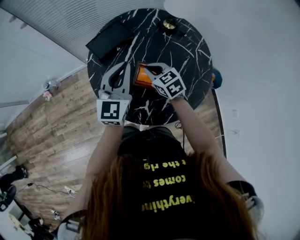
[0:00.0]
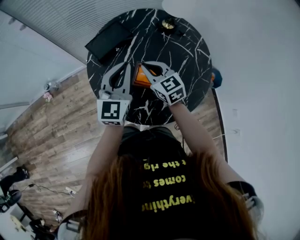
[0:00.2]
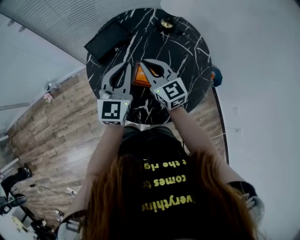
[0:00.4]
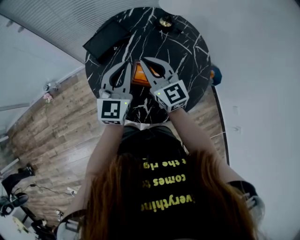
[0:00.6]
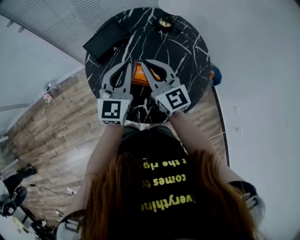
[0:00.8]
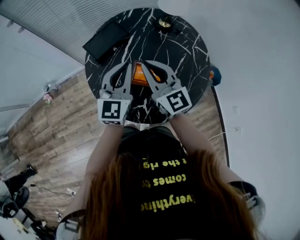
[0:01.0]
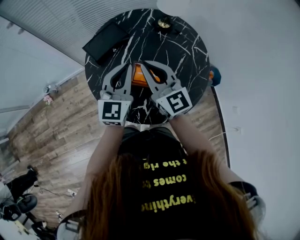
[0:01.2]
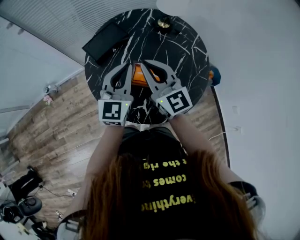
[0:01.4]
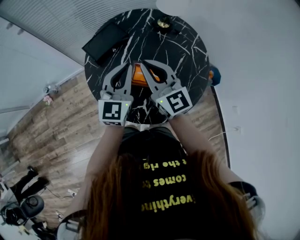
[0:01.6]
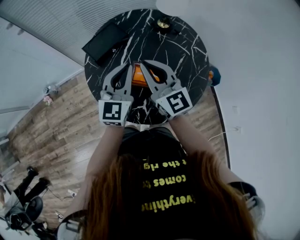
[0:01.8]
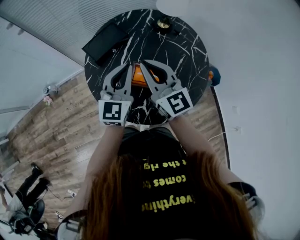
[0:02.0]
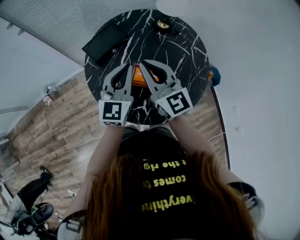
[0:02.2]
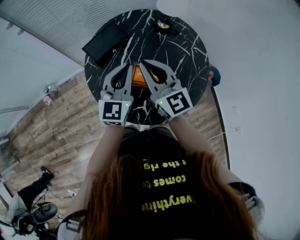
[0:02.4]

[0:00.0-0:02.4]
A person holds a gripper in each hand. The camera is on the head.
0.0 to 1.2 s: The right gripper moves upward, about 15 cm, and tilts its fingers about 40 degrees upward.
1.2 to 2.4 s: The two grippers keep their place.

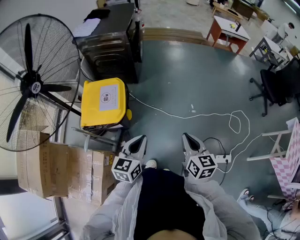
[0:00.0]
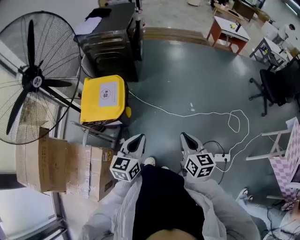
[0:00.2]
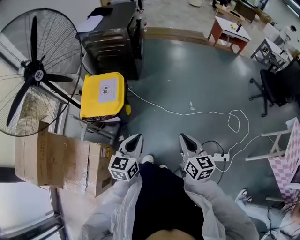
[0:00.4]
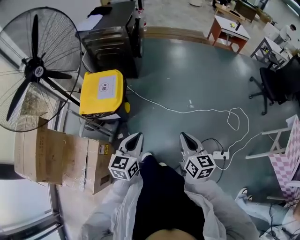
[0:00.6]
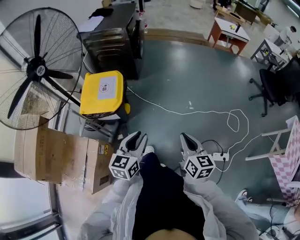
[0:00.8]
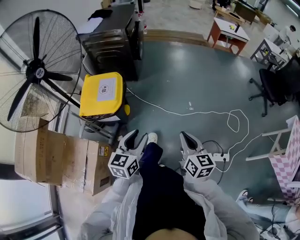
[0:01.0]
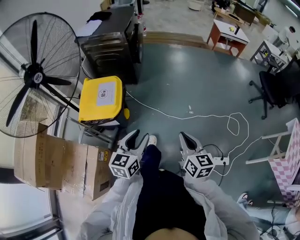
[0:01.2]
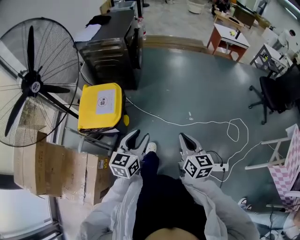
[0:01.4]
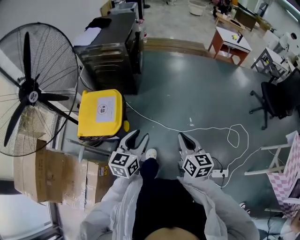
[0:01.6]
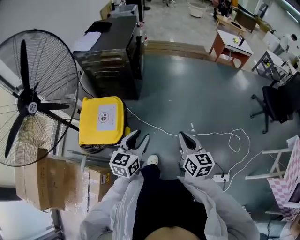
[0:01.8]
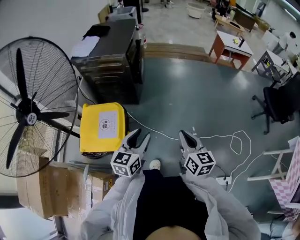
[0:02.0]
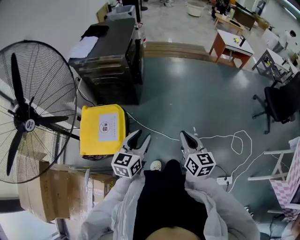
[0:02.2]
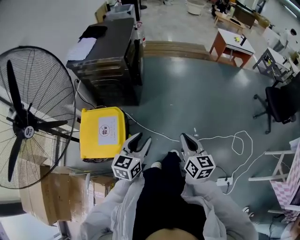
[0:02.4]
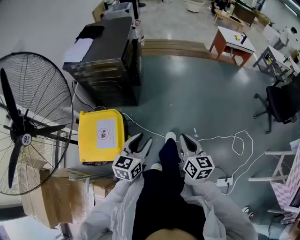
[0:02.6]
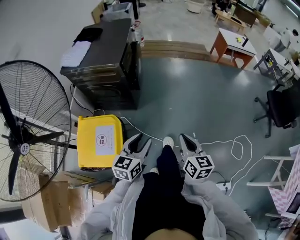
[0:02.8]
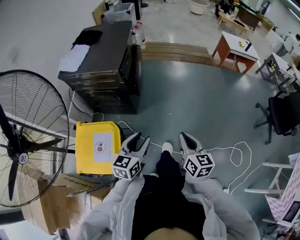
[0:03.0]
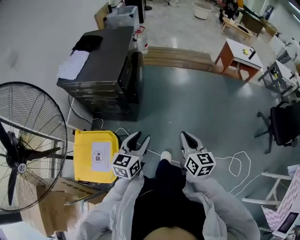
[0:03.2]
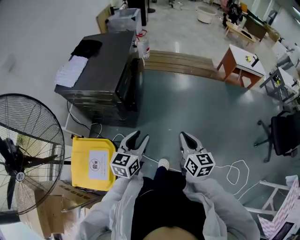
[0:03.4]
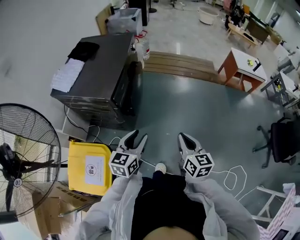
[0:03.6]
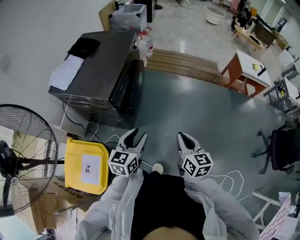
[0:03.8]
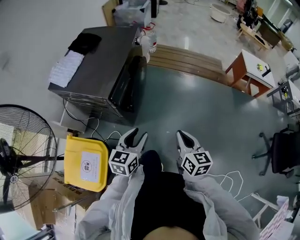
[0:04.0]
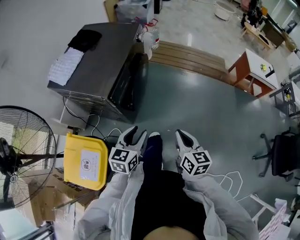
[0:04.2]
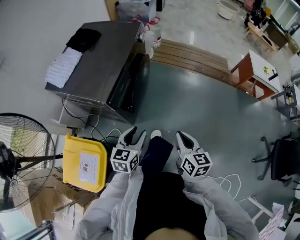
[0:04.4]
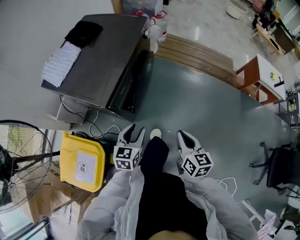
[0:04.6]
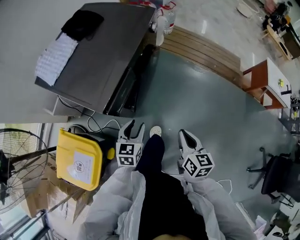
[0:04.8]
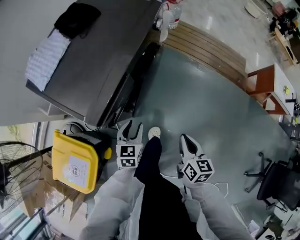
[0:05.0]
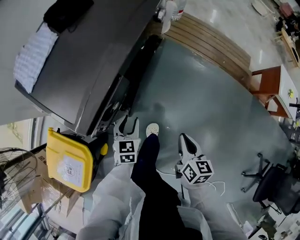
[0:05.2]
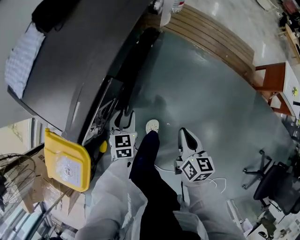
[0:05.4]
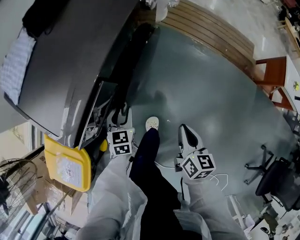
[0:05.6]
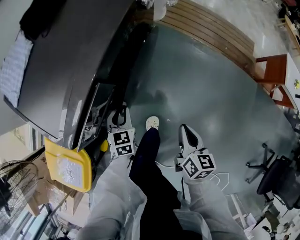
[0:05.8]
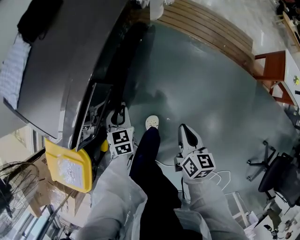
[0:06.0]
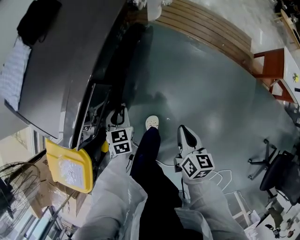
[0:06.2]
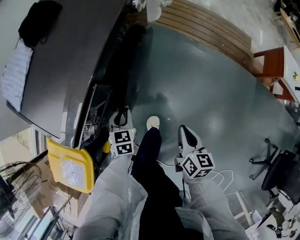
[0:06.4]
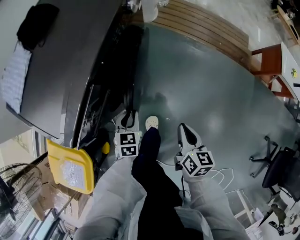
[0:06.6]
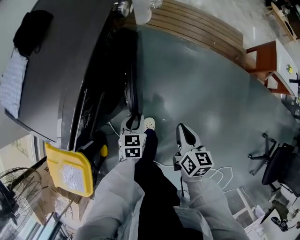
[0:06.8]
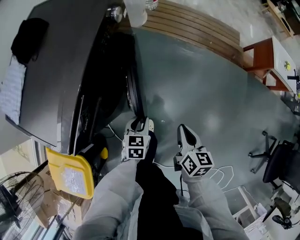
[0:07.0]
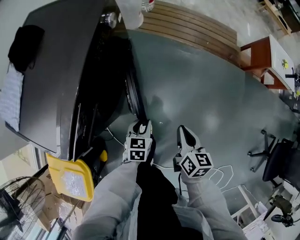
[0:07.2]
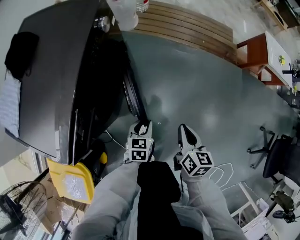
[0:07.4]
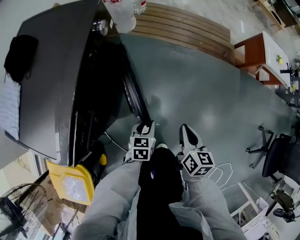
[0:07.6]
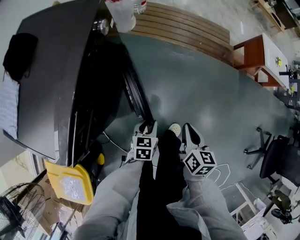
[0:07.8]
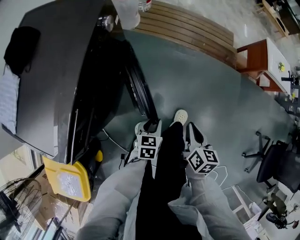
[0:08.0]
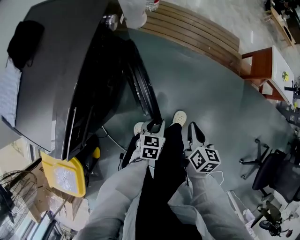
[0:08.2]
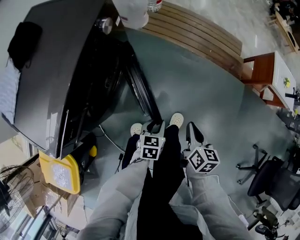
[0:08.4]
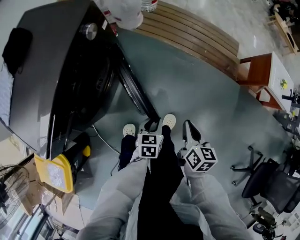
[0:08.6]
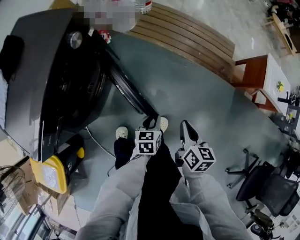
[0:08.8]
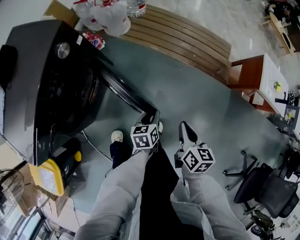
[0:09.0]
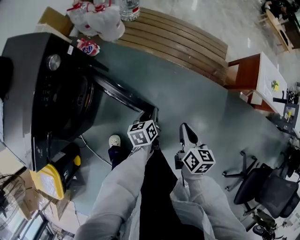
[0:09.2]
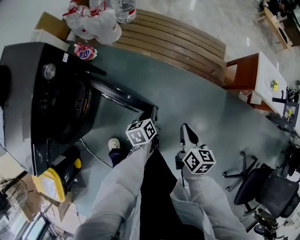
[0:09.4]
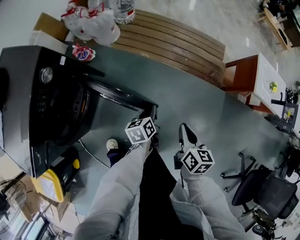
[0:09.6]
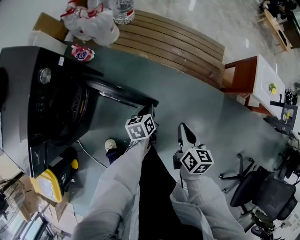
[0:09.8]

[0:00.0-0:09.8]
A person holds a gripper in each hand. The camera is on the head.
0.0 to 1.4 s: The right gripper moves roughly 10 cm backward and comes back, while the left gripper reaches about 10 cm backward, then returns, and opens.
1.4 to 2.8 s: Both grippers travel together forward, approximately 30 cm.
2.8 to 4.2 s: The two grippers go roughly 35 cm forward.
4.2 to 5.6 s: The right gripper shifts about 35 cm forward and downward, while the left gripper goes some 40 cm downward and forward, and swivels about 30 degrees.
5.6 to 7.0 s: The right gripper goes approximately 5 cm to the right. Meanwhile the left gripper heads to the right, covering about 15 cm.
7.0 to 8.4 s: The grippers both shift to the right and forward by about 15 cm.
8.4 to 9.8 s: The left gripper travels forward and to the right by roughly 30 cm, turns by about 30 degrees, and closes up, while the right gripper travels to the right and forward by roughly 25 cm.

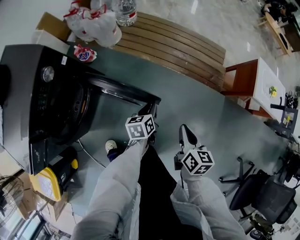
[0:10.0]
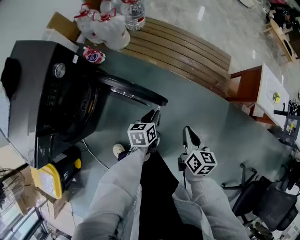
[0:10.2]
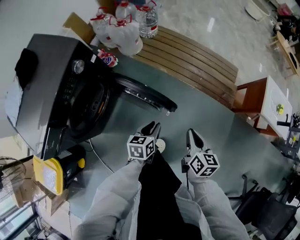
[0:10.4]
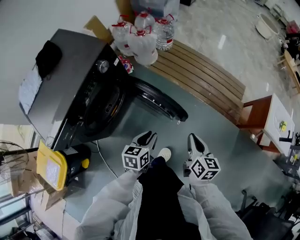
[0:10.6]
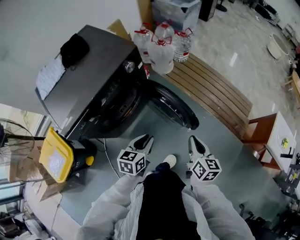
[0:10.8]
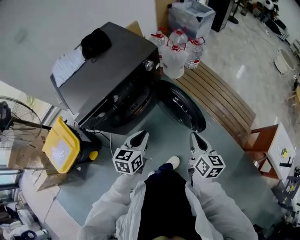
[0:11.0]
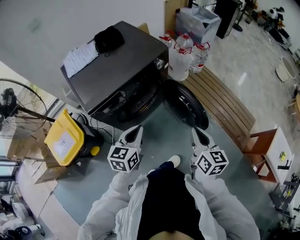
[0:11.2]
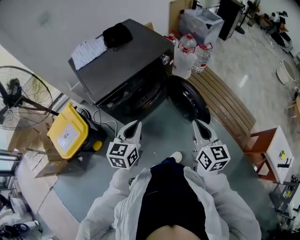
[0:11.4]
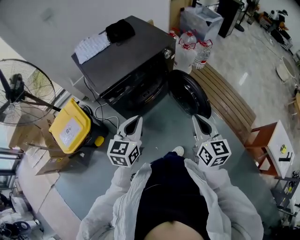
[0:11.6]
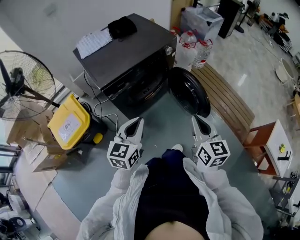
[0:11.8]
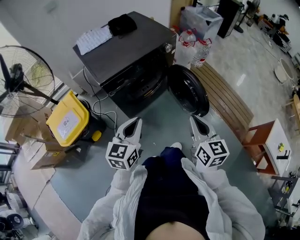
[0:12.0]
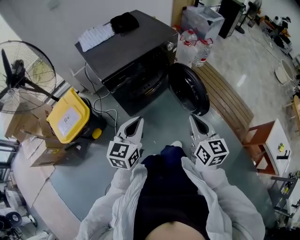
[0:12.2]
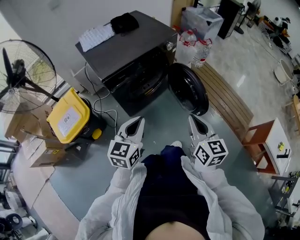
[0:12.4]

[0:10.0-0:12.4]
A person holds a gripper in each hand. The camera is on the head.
10.0 to 11.2 s: The right gripper changes place by roughly 35 cm, and turns by approximately 40 degrees; the left gripper shifts by some 50 cm, and swivels roughly 40 degrees.
11.2 to 12.4 s: The right gripper goes about 15 cm backward and to the left. The left gripper travels backward by approximately 15 cm.

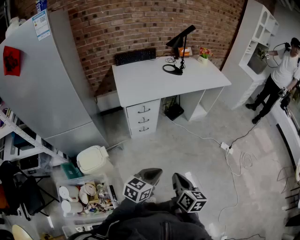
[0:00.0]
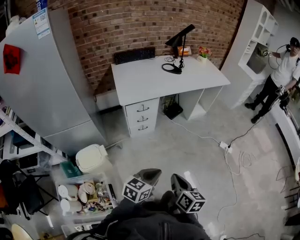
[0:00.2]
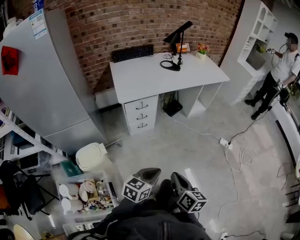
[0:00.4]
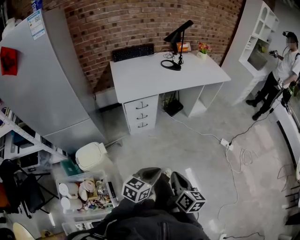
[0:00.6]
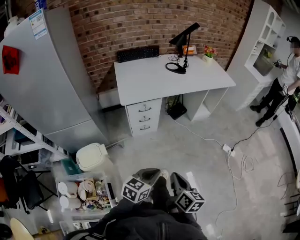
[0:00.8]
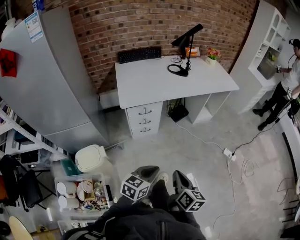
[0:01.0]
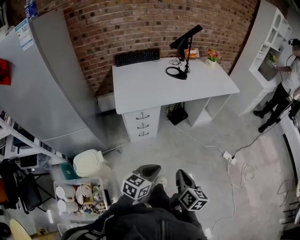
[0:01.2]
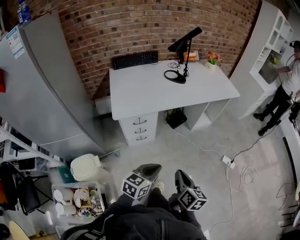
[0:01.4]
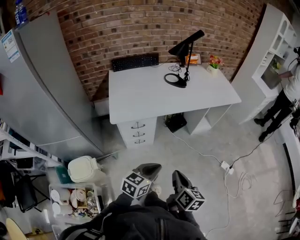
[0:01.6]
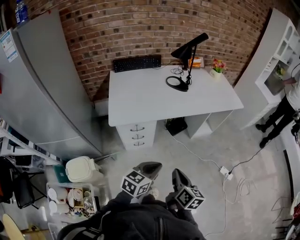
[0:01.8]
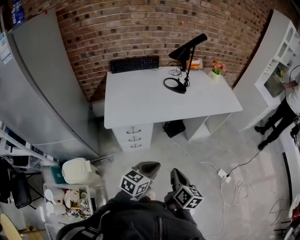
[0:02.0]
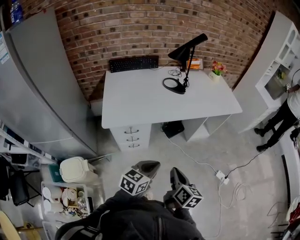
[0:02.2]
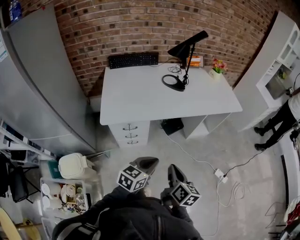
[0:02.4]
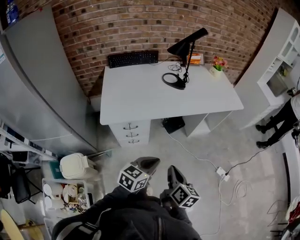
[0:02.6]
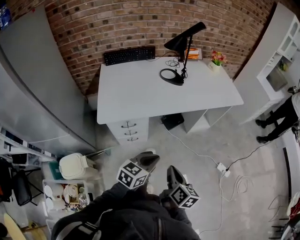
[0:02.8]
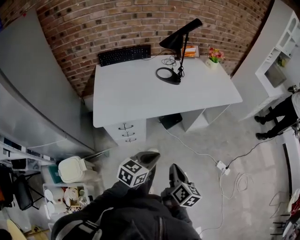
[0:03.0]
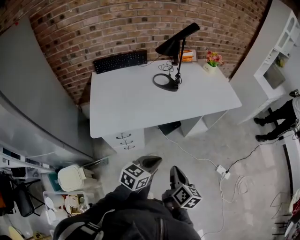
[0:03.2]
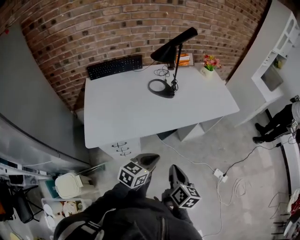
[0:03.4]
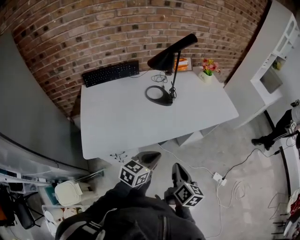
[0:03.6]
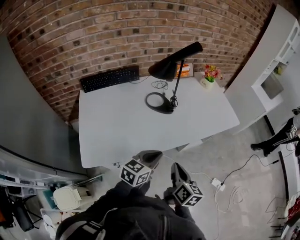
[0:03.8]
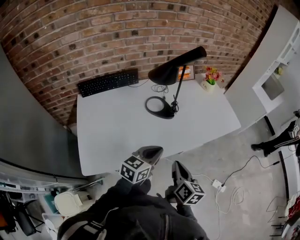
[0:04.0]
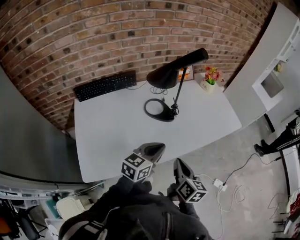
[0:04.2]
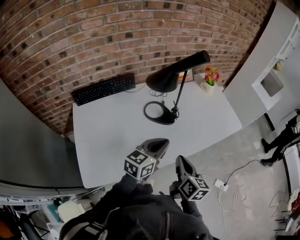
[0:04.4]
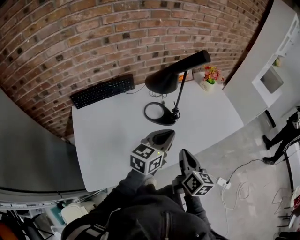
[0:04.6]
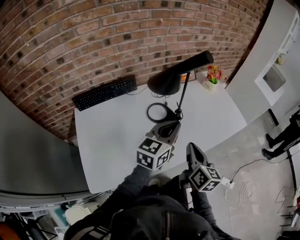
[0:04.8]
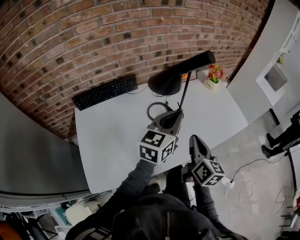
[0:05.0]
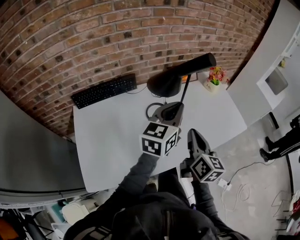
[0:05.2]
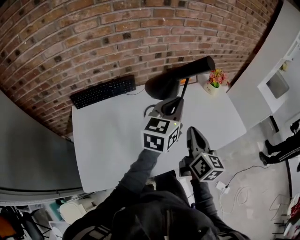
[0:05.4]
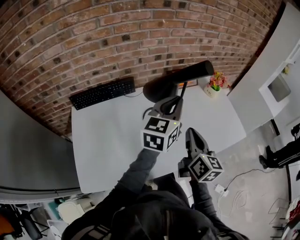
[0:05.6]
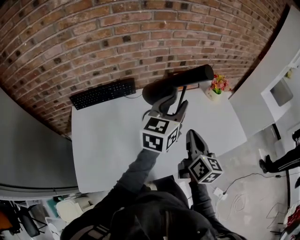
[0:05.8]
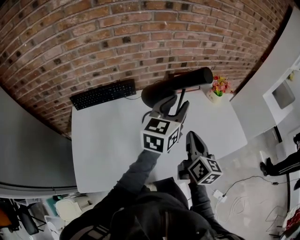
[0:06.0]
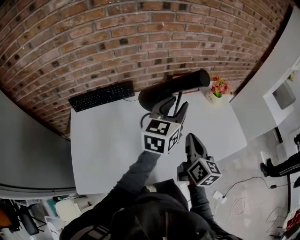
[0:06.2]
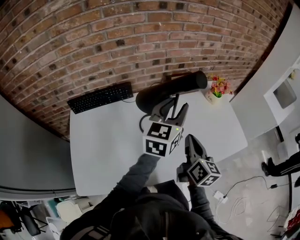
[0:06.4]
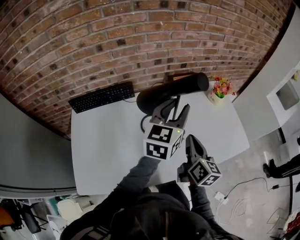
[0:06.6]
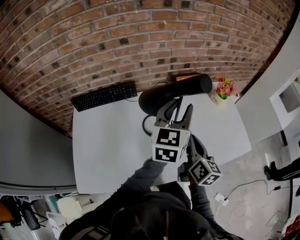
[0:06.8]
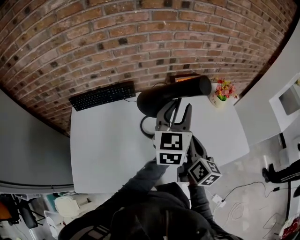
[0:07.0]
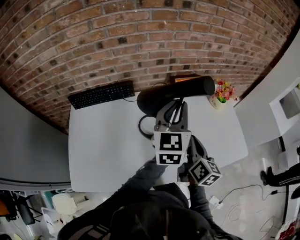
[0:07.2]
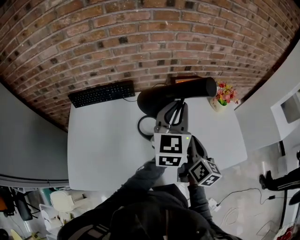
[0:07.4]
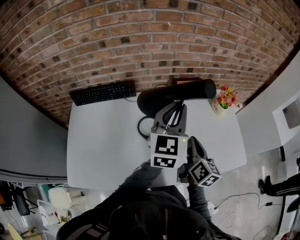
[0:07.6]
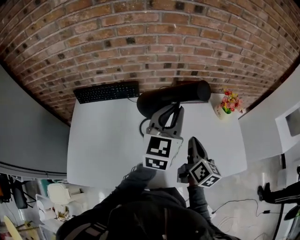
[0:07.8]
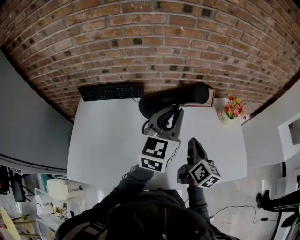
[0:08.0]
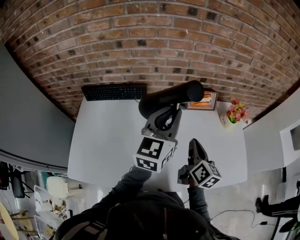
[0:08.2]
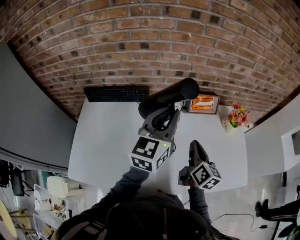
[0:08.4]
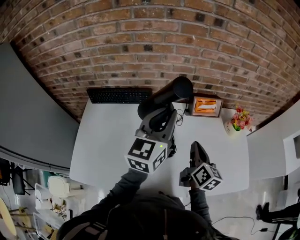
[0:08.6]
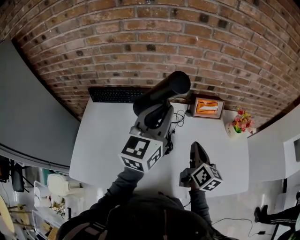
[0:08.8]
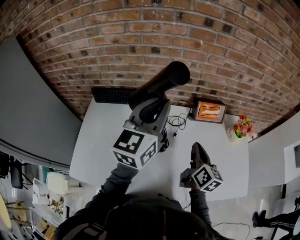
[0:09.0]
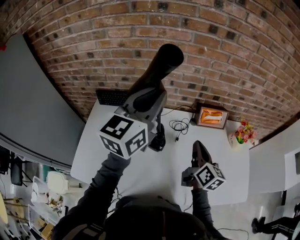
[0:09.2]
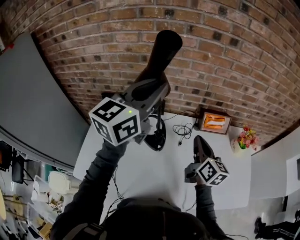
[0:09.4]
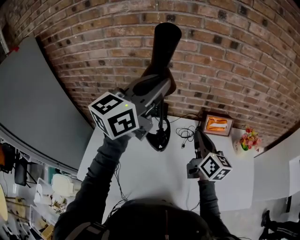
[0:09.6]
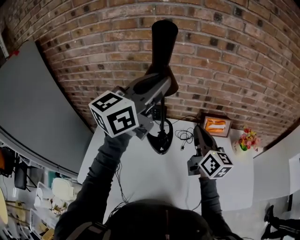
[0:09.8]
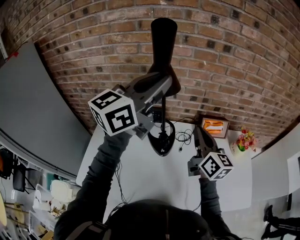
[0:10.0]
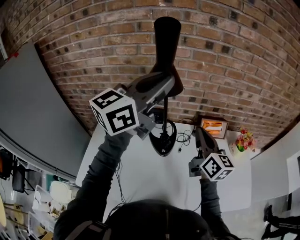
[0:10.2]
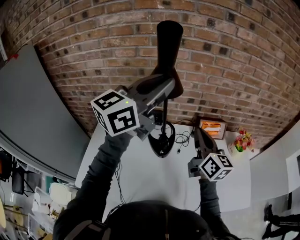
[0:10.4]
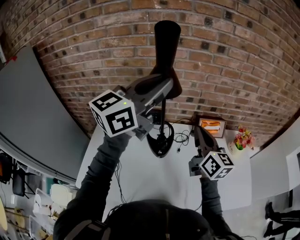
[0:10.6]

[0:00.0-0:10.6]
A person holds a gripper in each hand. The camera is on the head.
0.0 to 1.6 s: Both grippers travel together forward, approximately 25 cm.
1.6 to 3.0 s: The two grippers go some 15 cm forward.
3.0 to 4.6 s: Both grippers move forward, some 40 cm.
4.6 to 6.0 s: The grippers both shift forward and upward by about 20 cm. The left gripper opens up.
6.0 to 7.6 s: The right gripper goes some 10 cm forward and to the right, while the left gripper shifts about 5 cm forward, swivels about 20 degrees, and closes.
7.6 to 9.0 s: The left gripper heads to the left and upward, covering roughly 15 cm. Meanwhile the right gripper is displaced forward by roughly 5 cm.
9.0 to 10.6 s: The grippers both shift upward by some 15 cm. The right gripper changes its angle by roughly 20 degrees; the left gripper turns by some 20 degrees.
